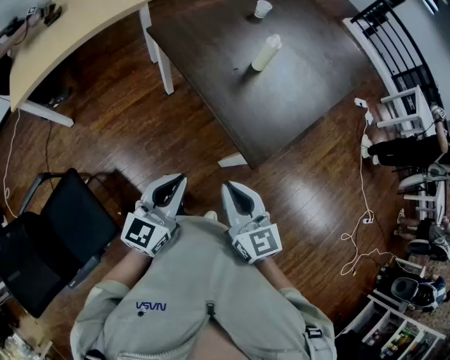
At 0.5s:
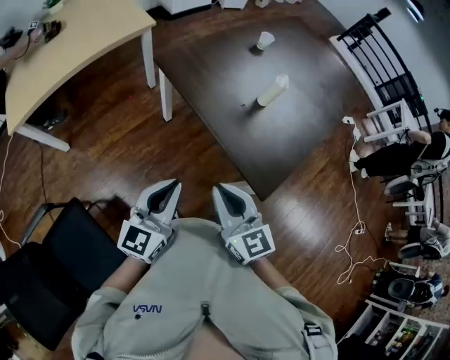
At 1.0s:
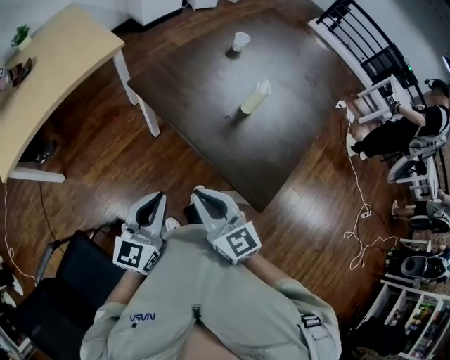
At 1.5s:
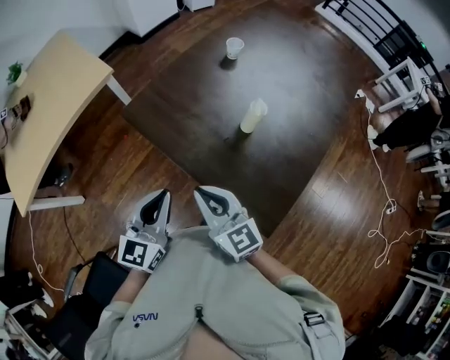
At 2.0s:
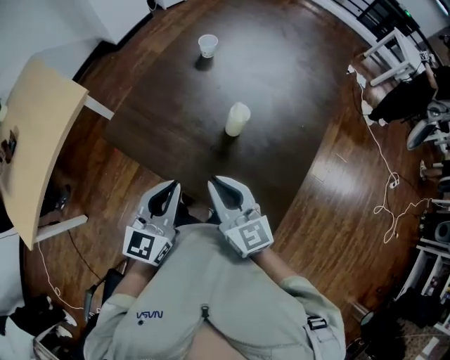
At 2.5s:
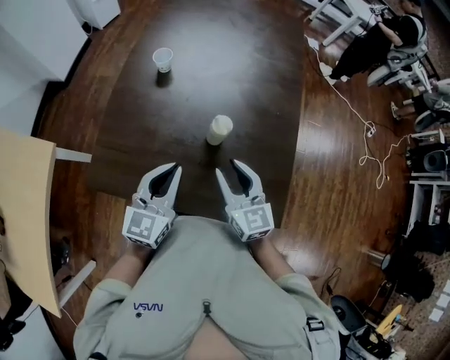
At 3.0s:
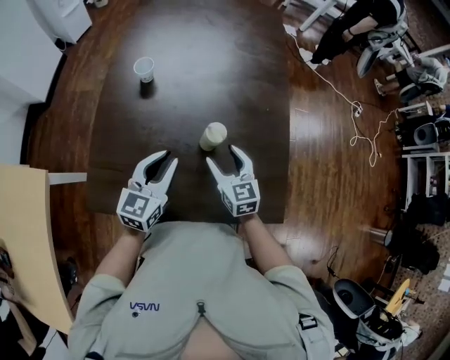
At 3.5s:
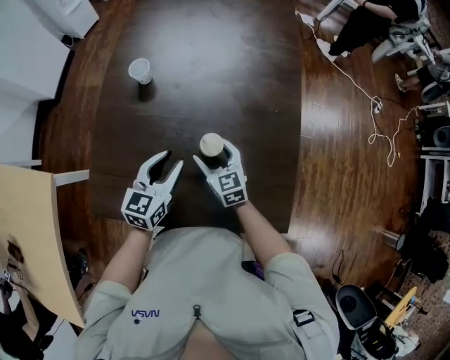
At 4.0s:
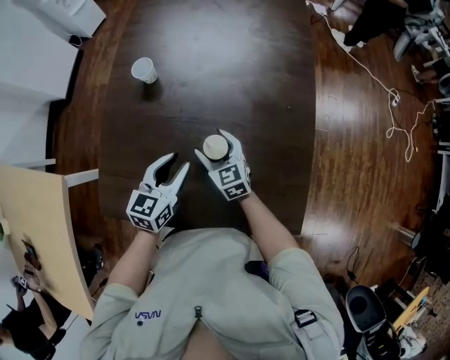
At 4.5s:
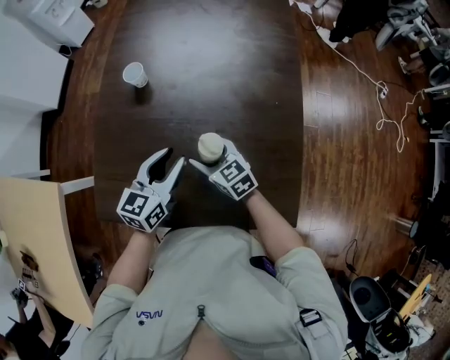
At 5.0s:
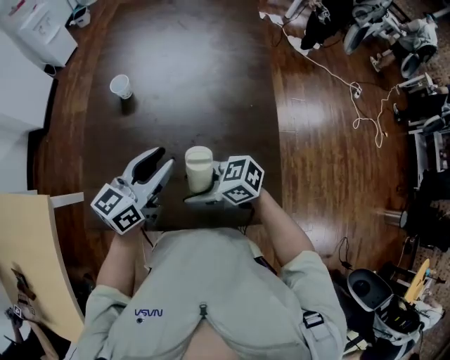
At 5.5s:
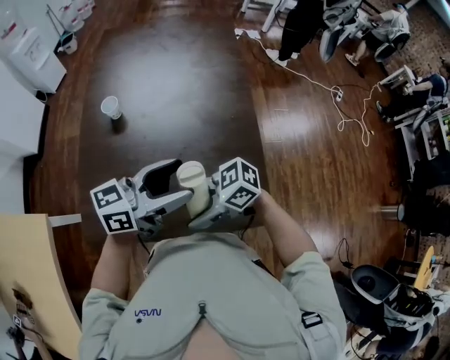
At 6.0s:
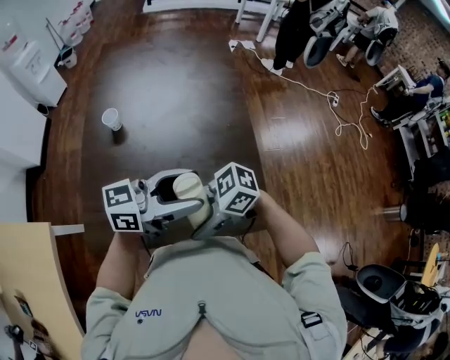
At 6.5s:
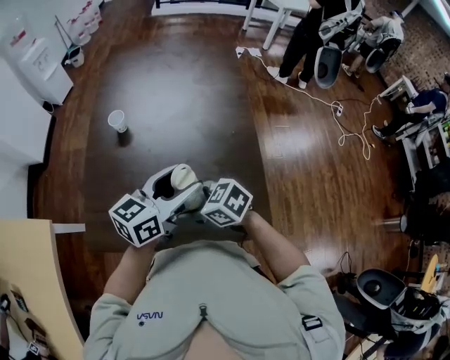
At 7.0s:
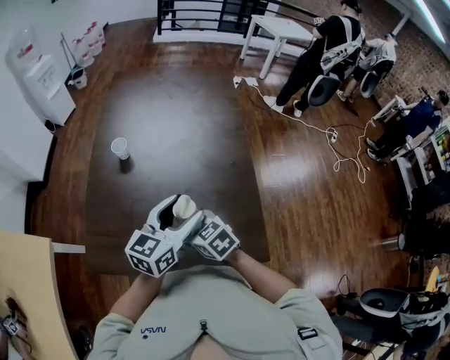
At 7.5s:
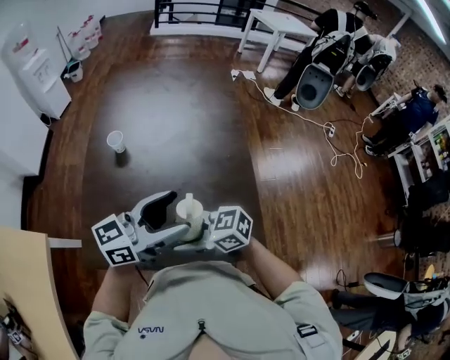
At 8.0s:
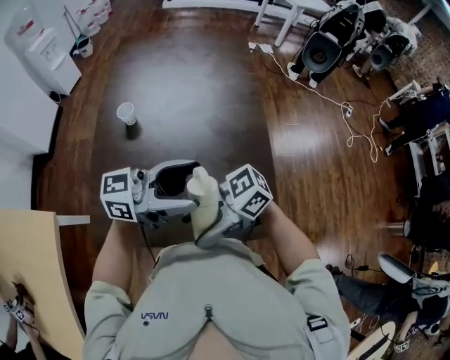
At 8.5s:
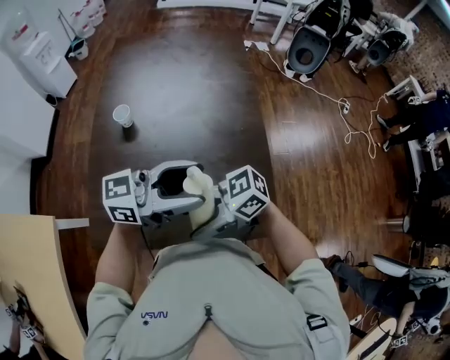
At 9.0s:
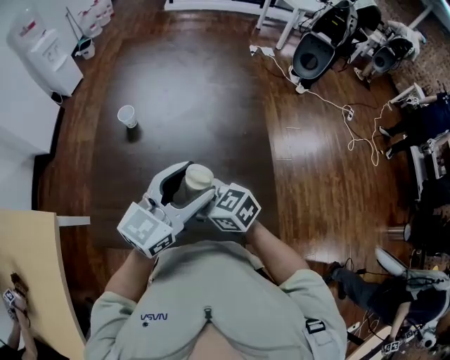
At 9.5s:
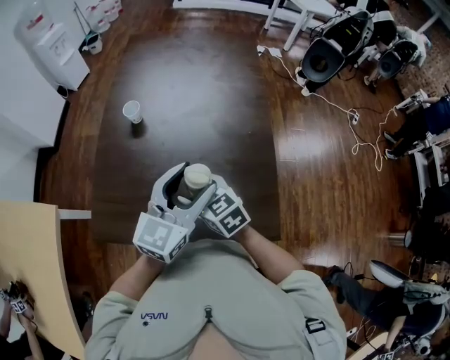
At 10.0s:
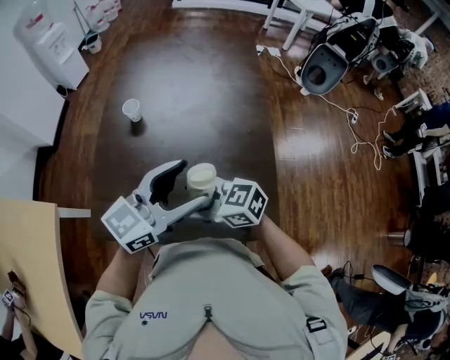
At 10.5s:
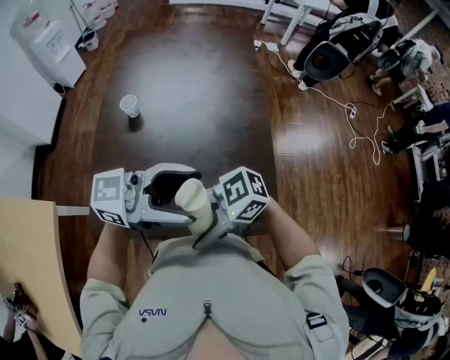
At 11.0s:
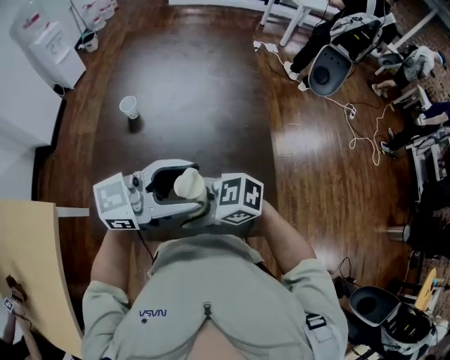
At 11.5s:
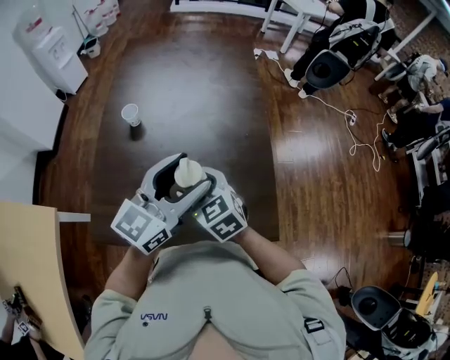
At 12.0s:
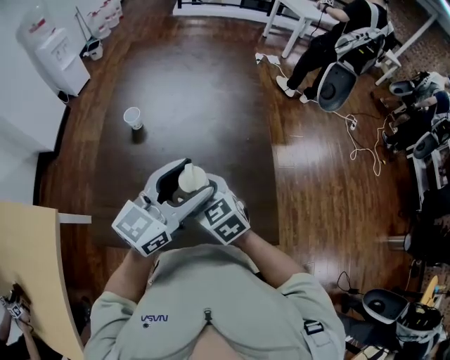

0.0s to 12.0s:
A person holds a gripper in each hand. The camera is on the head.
0.0s to 2.0s: Both grippers travel together forward, some 30 cm.
2.0s to 4.0s: The right gripper changes place by some 25 cm, swivels about 30 degrees, and opens up; the left gripper shifts by roughly 20 cm, turns by about 30 degrees, and opens.
4.0s to 6.0s: The right gripper ends up about 25 cm from where it was, and swivels roughly 70 degrees. The left gripper goes some 20 cm upward, tilts its fingers about 30 degrees upward, and opens up.
6.0s to 8.0s: The right gripper travels downward and back again, roughly 10 cm each way. Meanwhile the left gripper travels downward and back again, some 5 cm each way.
8.0s to 10.0s: The left gripper rotates approximately 40 degrees. Meanwhile the right gripper swivels about 40 degrees.
10.0s to 12.0s: The right gripper changes its angle by some 30 degrees.

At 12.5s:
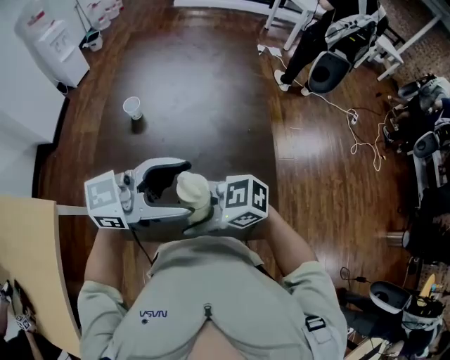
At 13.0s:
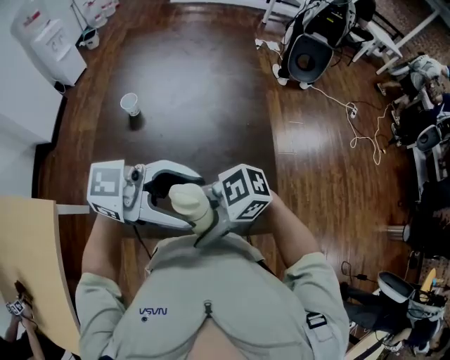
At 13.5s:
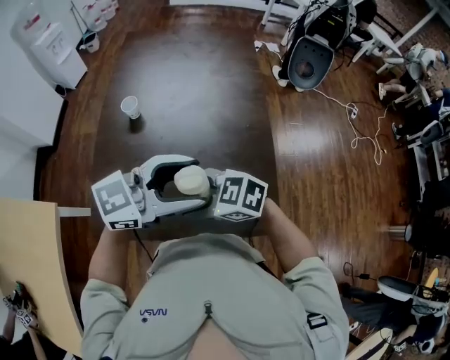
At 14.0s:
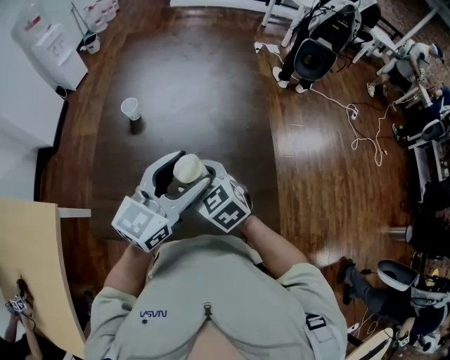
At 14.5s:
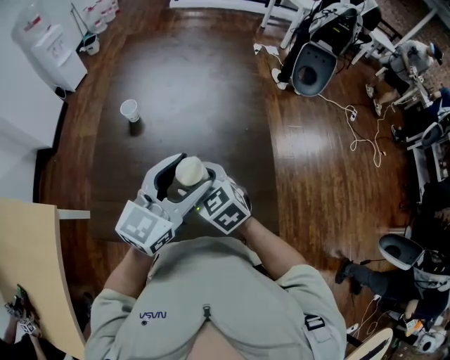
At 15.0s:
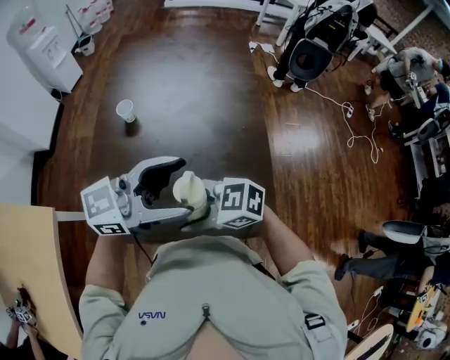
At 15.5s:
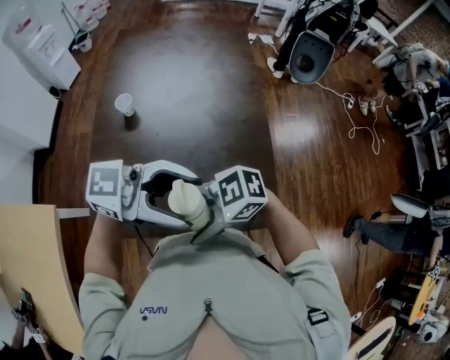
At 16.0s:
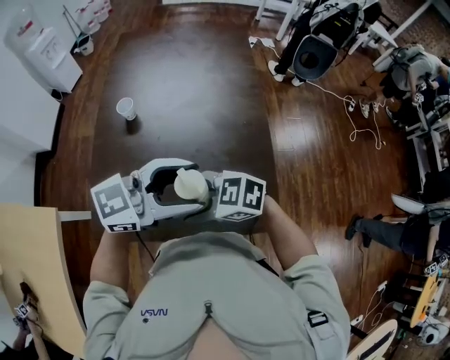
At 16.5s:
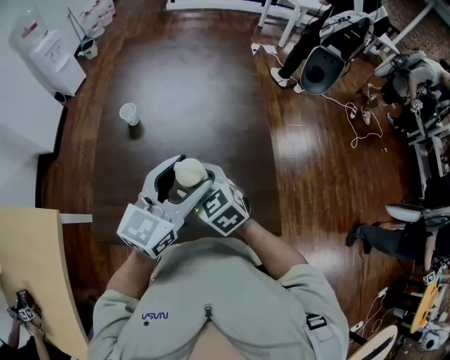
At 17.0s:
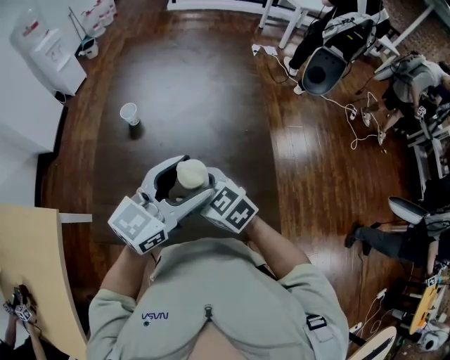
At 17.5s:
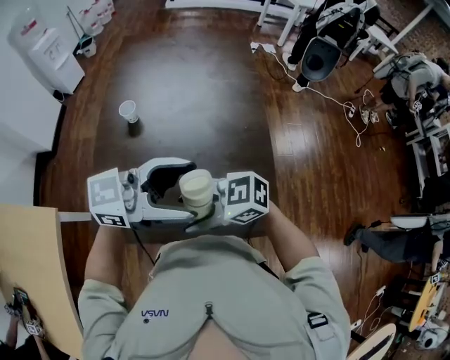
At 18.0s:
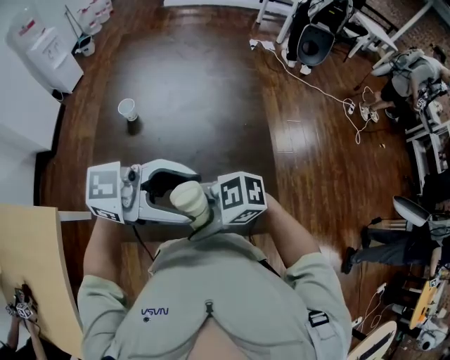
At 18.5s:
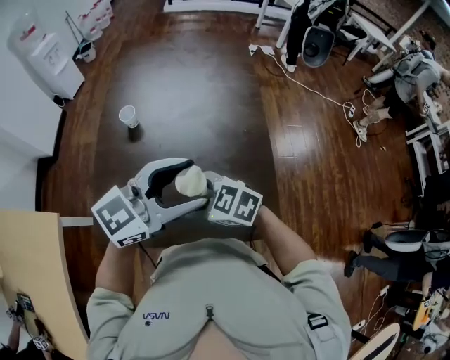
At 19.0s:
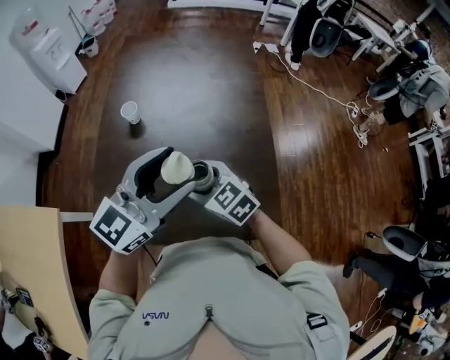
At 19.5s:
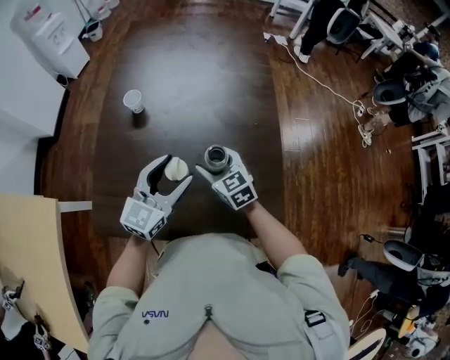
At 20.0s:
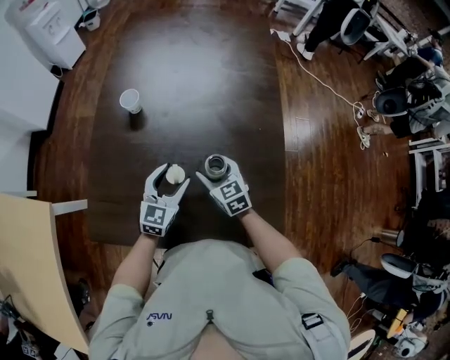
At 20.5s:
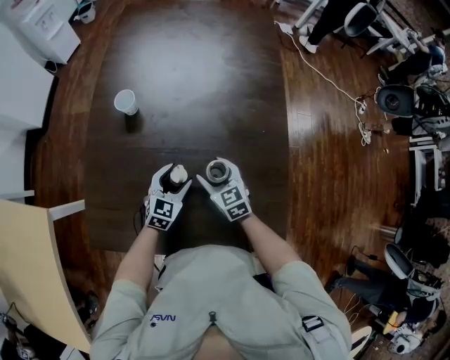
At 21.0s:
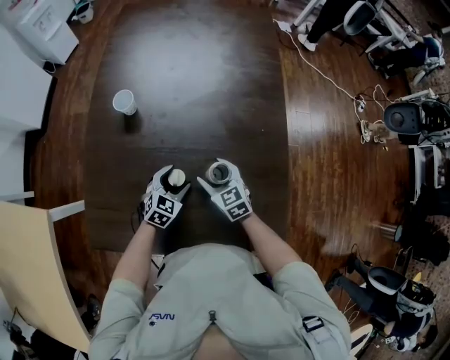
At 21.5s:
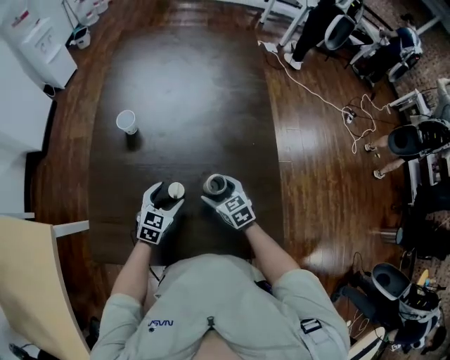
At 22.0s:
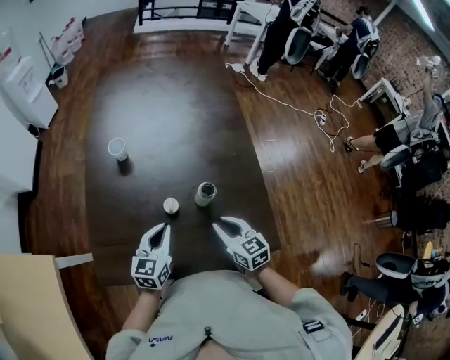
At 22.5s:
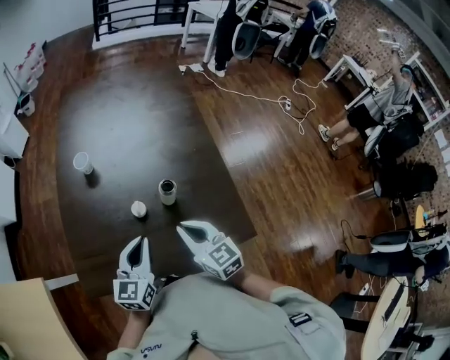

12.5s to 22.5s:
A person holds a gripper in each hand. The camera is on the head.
12.5s to 14.5s: The left gripper ends up roughly 5 cm from where it was, and swivels approximately 40 degrees, while the right gripper shifts by about 10 cm, and rotates some 50 degrees.
16.5s to 18.5s: The right gripper turns by roughly 30 degrees. The left gripper changes its angle by roughly 30 degrees.
18.5s to 20.5s: The left gripper is displaced downward by some 35 cm, and rotates approximately 40 degrees. The right gripper heads downward, covering roughly 15 cm, and changes its angle by approximately 40 degrees.
20.5s to 22.5s: Both grippers move upward and backward, some 20 cm. The left gripper changes its angle by about 20 degrees, and closes; the right gripper closes up.

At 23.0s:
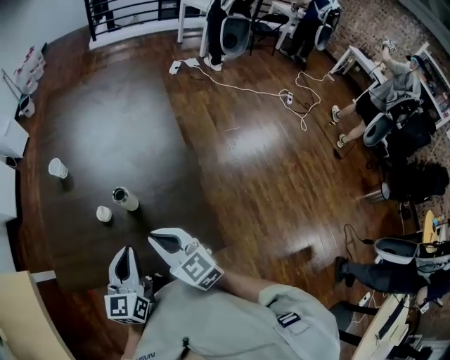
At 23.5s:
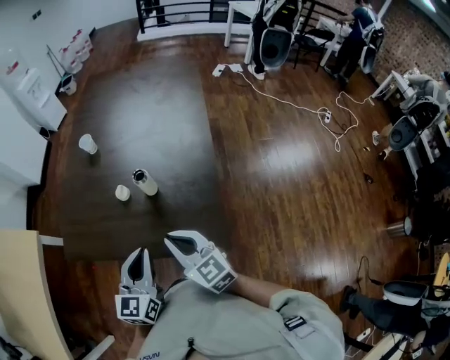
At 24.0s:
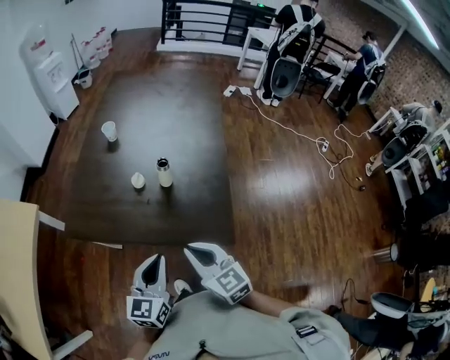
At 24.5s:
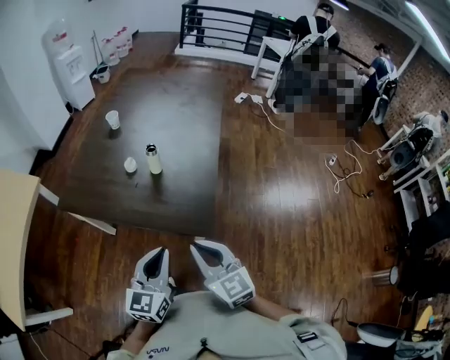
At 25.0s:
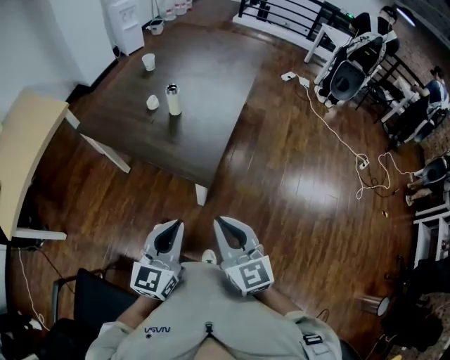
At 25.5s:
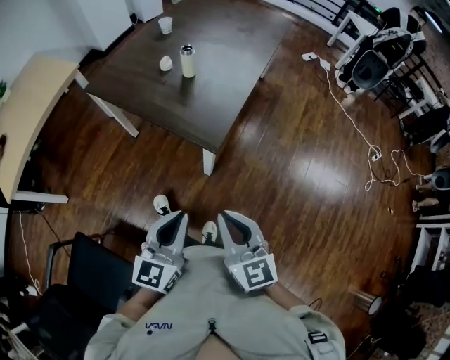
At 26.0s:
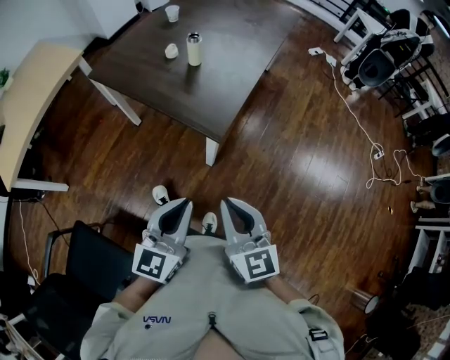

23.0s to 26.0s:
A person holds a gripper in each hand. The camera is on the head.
23.0s to 24.5s: Both grippers move backward and to the right, about 20 cm.
24.5s to 26.0s: Both grippers move backward and to the right, roughly 20 cm.

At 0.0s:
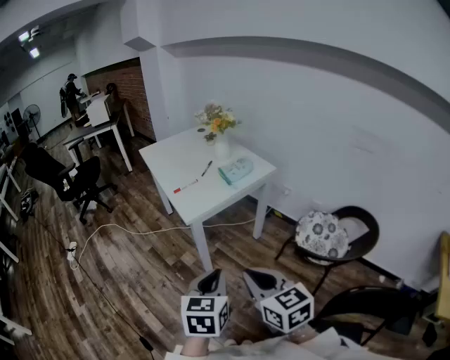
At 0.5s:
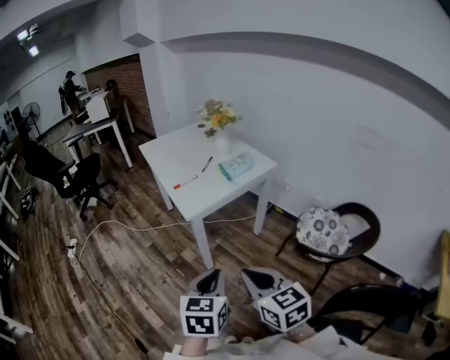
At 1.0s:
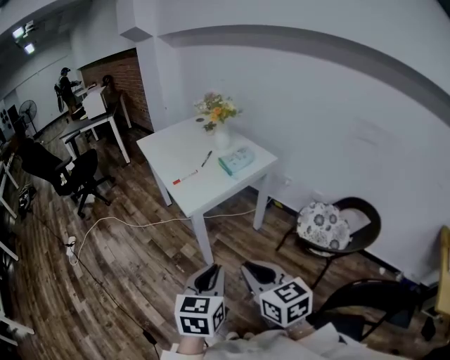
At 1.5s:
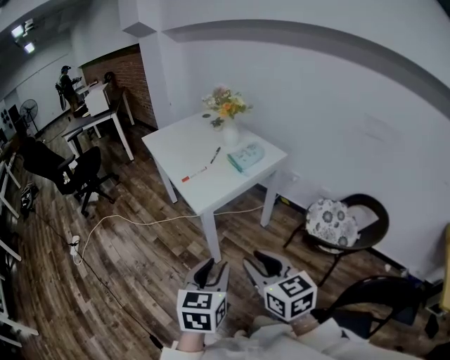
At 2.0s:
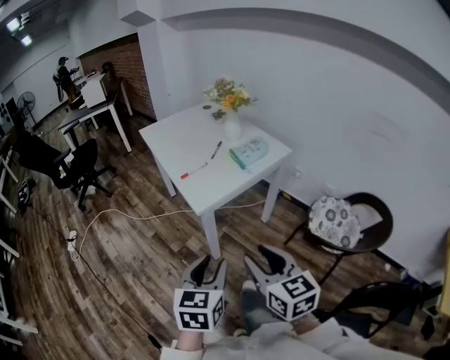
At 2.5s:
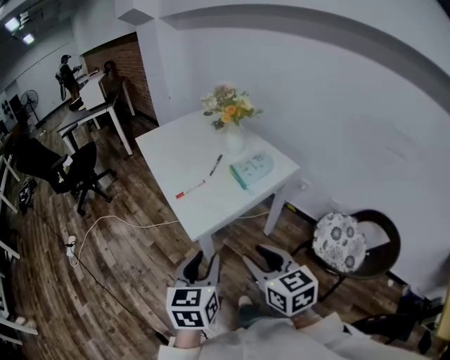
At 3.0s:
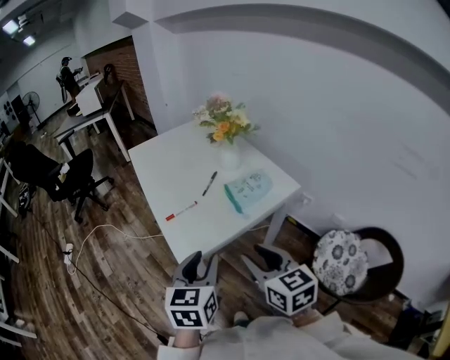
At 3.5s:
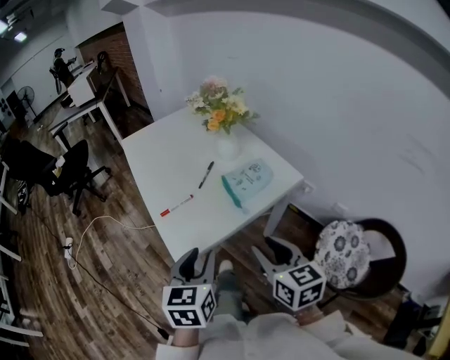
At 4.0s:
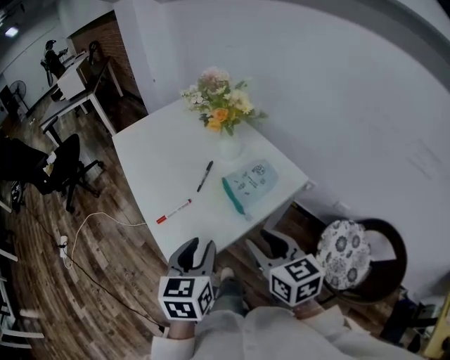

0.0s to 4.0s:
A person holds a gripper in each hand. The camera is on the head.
0.0s to 2.0s: The right gripper travels forward by roughly 10 cm, and opens; the left gripper heads to the left and forward, covering roughly 10 cm, and opens its fingers.
2.0s to 4.0s: The grippers both shift forward by approximately 30 cm.
